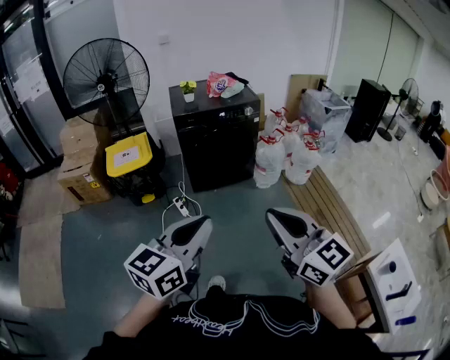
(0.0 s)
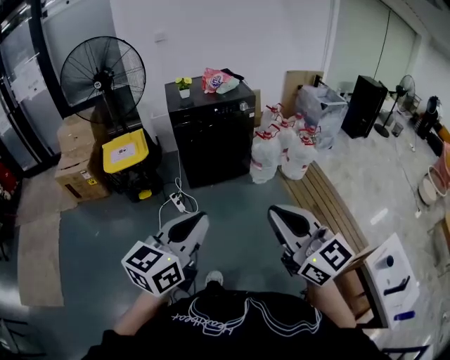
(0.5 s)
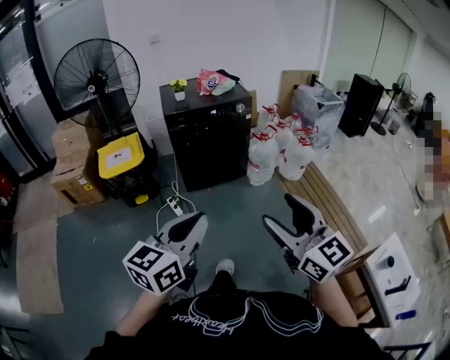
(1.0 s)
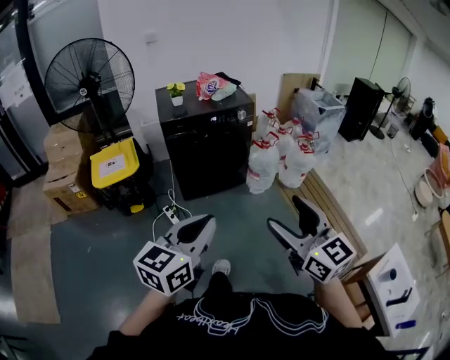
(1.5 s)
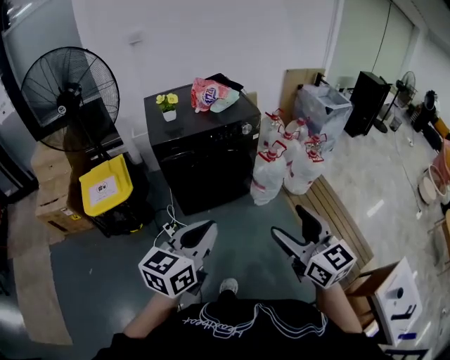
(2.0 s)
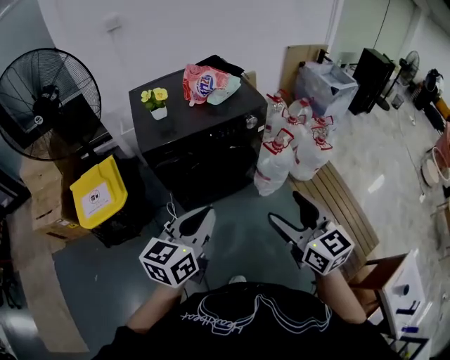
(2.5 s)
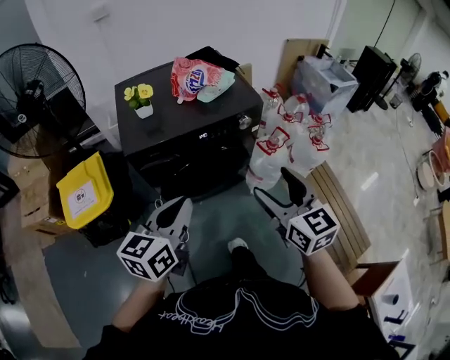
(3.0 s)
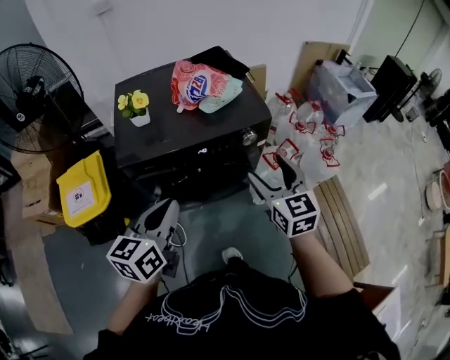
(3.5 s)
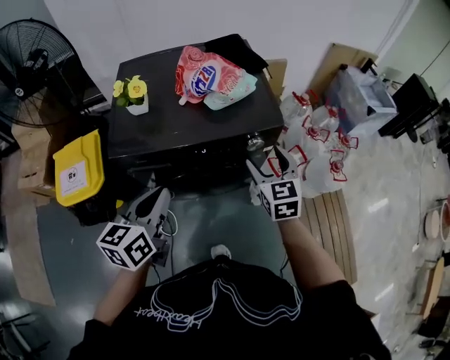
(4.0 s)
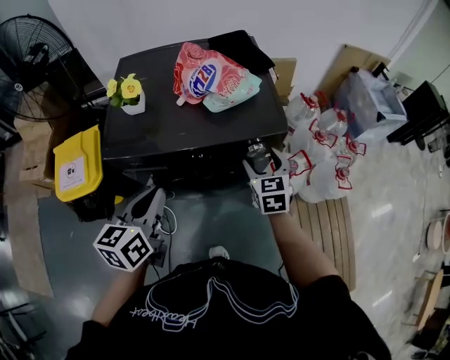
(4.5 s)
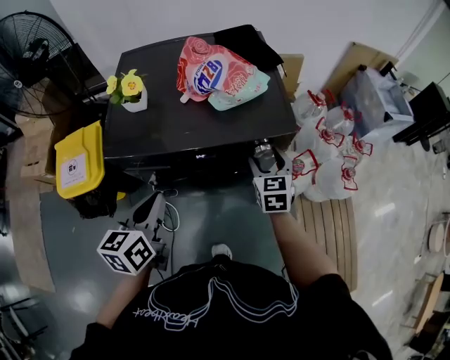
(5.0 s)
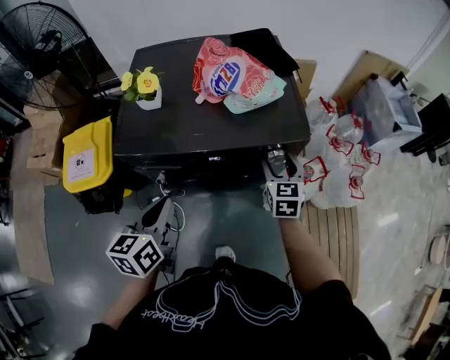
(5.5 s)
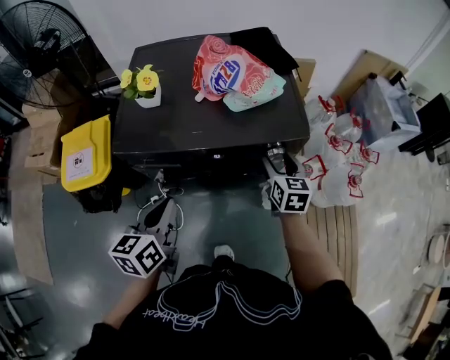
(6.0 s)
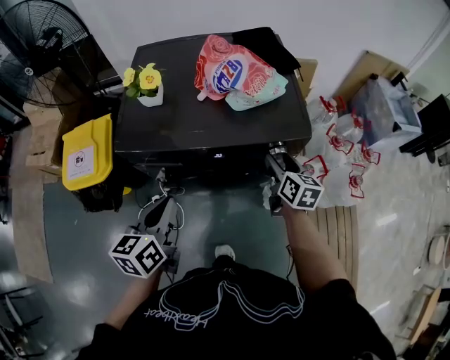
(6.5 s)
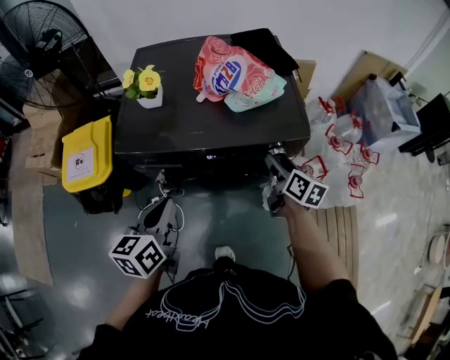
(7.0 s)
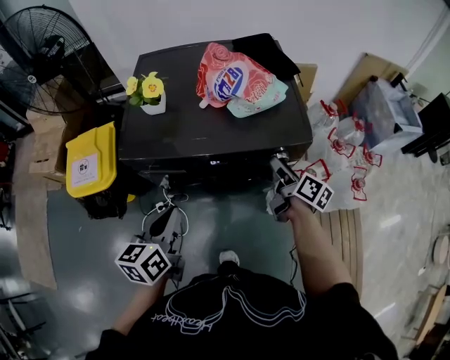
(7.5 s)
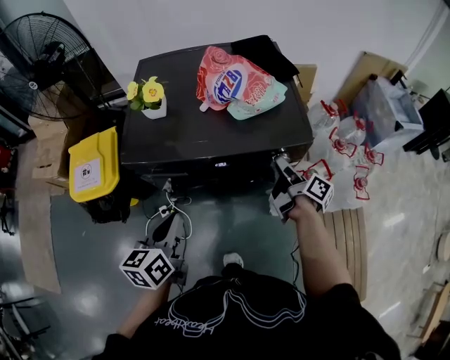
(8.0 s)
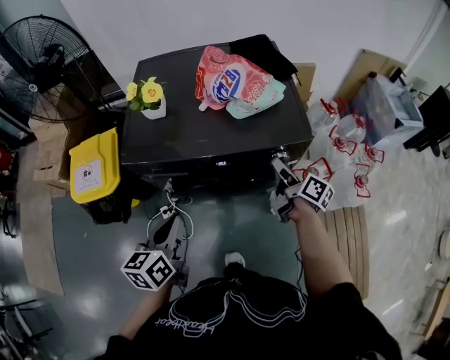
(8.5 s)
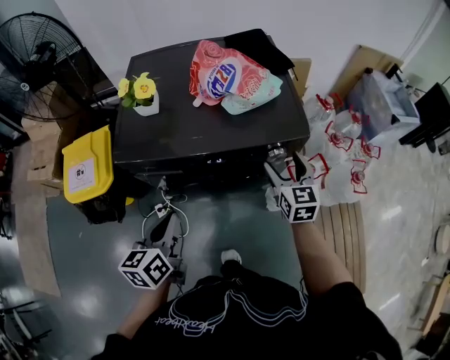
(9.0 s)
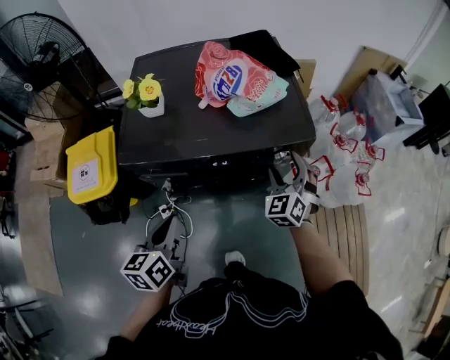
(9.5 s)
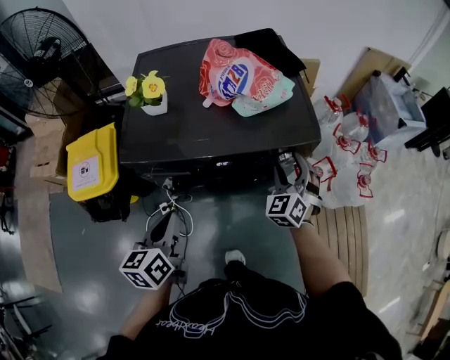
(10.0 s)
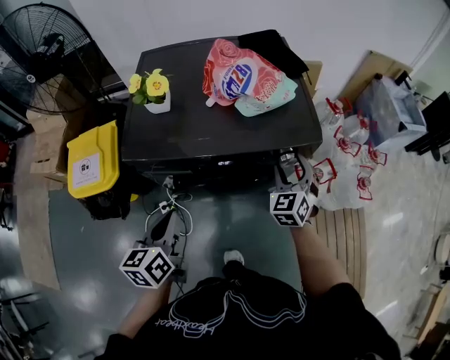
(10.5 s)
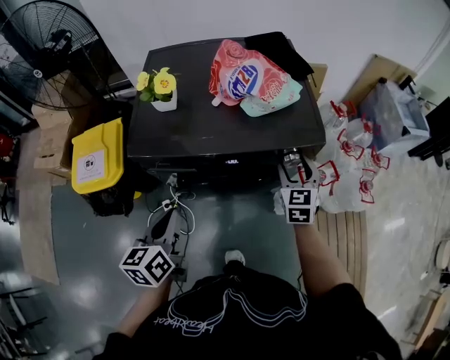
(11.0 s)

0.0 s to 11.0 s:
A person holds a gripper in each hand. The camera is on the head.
0.0 to 2.0 s: The two grippers go about 30 cm forward. The right gripper opens.
2.0 to 3.5 s: The grippers both shift forward by roughly 35 cm.
3.5 to 5.5 s: The right gripper heads forward and downward, covering roughly 25 cm; the left gripper shifts approximately 10 cm downward and forward, and turns by approximately 20 degrees.
5.5 to 7.5 s: The right gripper rotates around the line of its fingers by about 60 degrees, clockwise from behind.
7.5 to 9.0 s: The right gripper rotates around the line of its fingers by some 60 degrees, counterclockwise from behind.

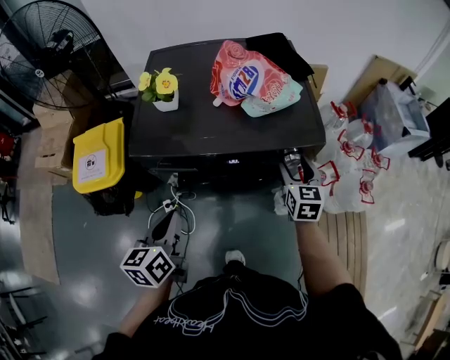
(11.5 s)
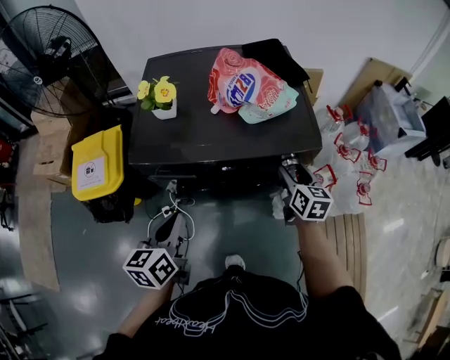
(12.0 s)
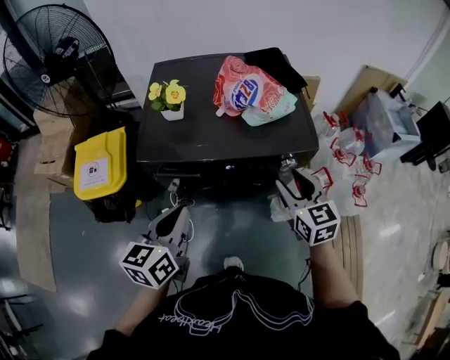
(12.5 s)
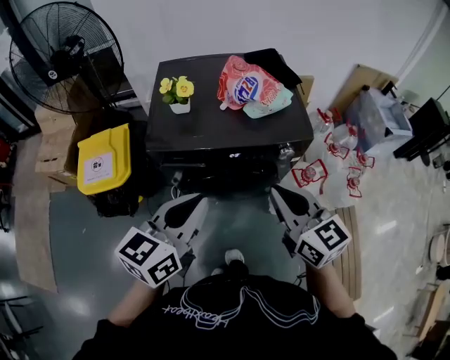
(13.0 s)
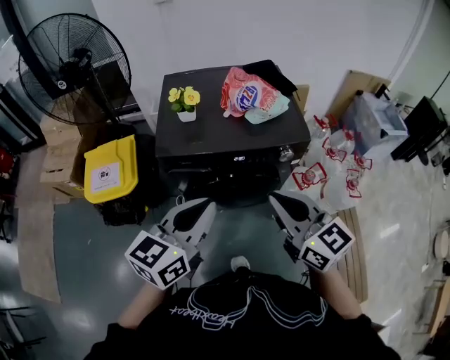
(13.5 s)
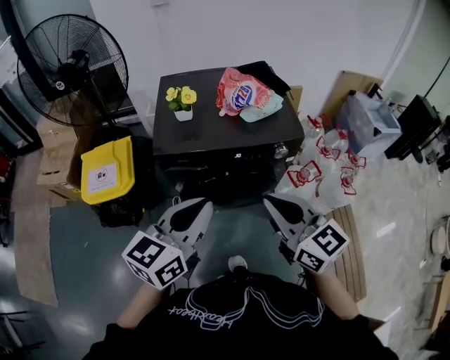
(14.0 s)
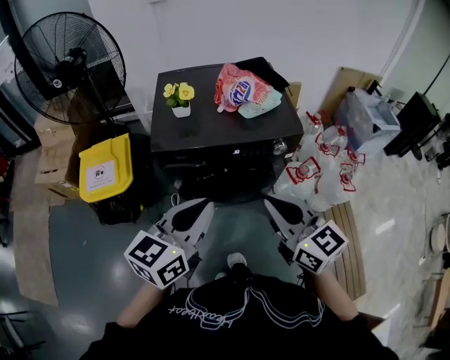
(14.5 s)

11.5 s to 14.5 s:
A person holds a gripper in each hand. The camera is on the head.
11.5 to 13.0 s: The right gripper heads upward, backward and to the left, covering some 30 cm, changes its angle by approximately 30 degrees, and closes up. The left gripper travels upward by some 15 cm, and changes its angle by roughly 30 degrees.
13.0 to 14.5 s: The two grippers go some 5 cm backward.

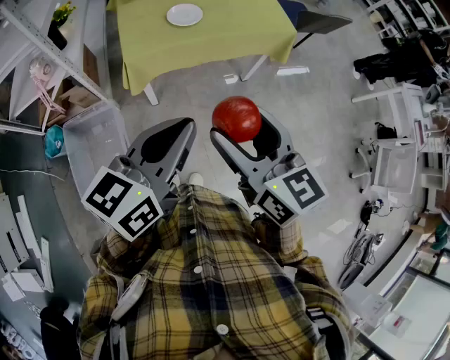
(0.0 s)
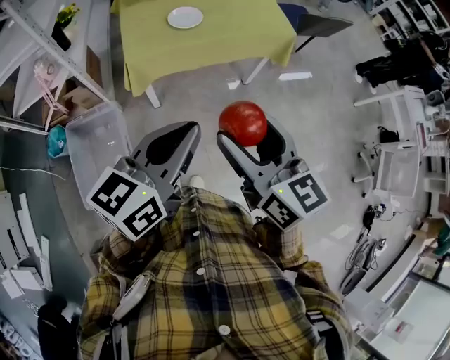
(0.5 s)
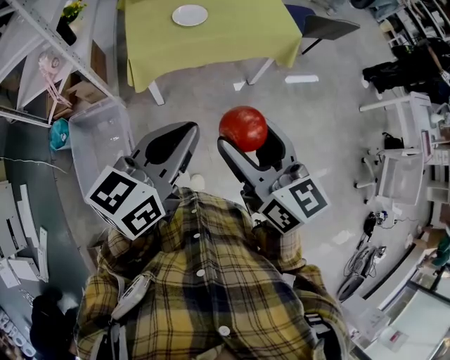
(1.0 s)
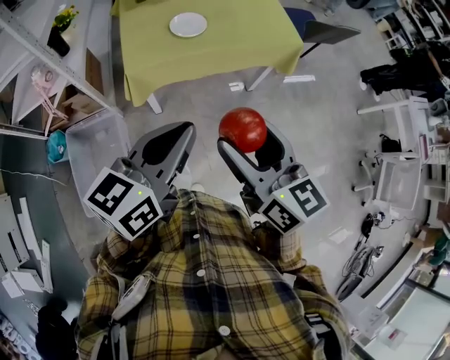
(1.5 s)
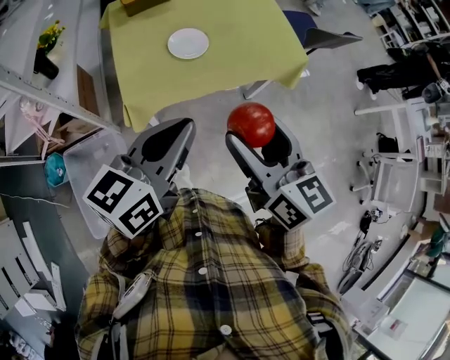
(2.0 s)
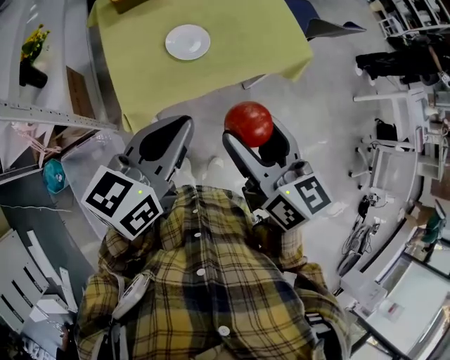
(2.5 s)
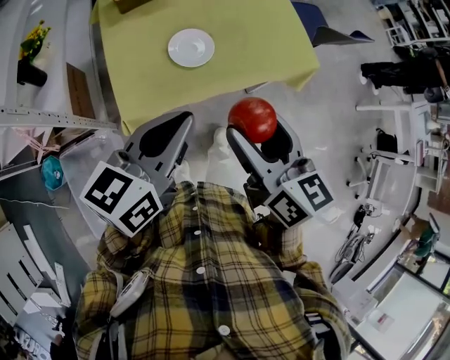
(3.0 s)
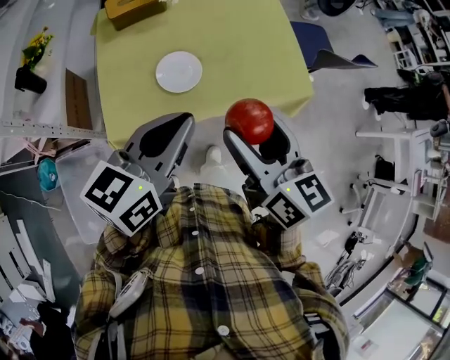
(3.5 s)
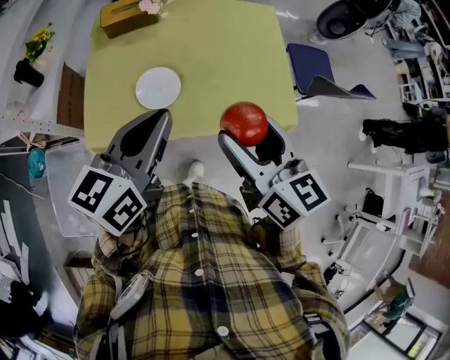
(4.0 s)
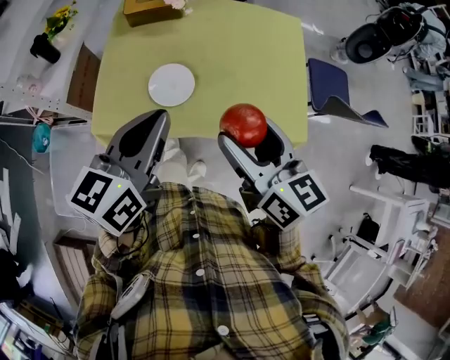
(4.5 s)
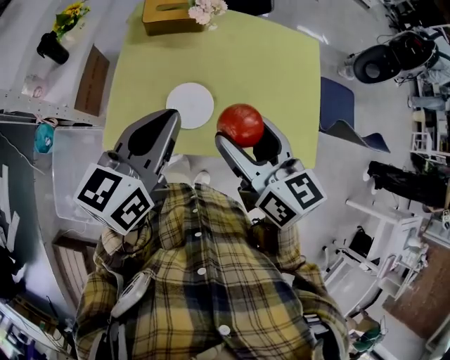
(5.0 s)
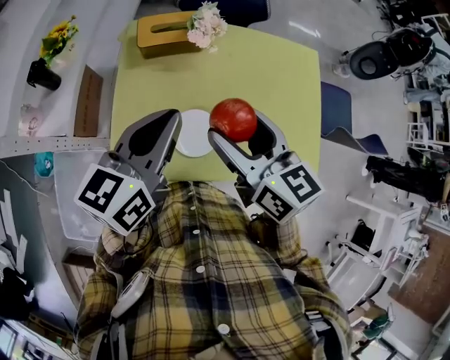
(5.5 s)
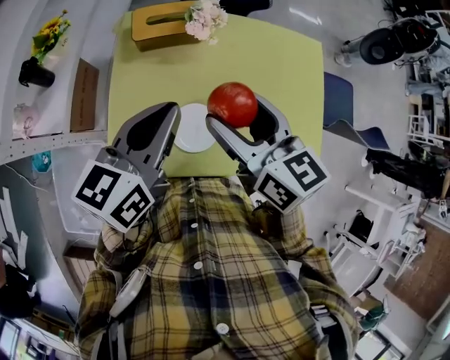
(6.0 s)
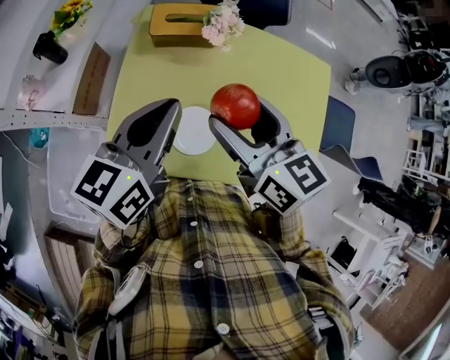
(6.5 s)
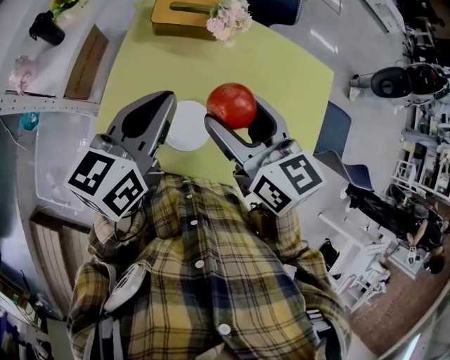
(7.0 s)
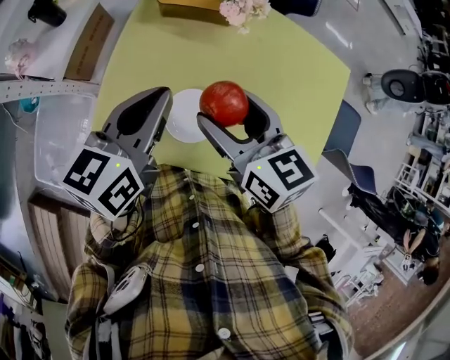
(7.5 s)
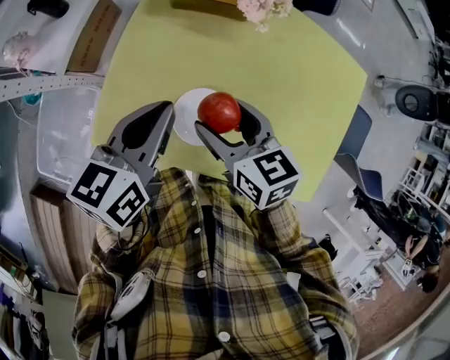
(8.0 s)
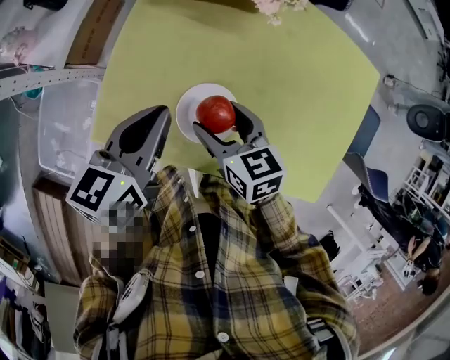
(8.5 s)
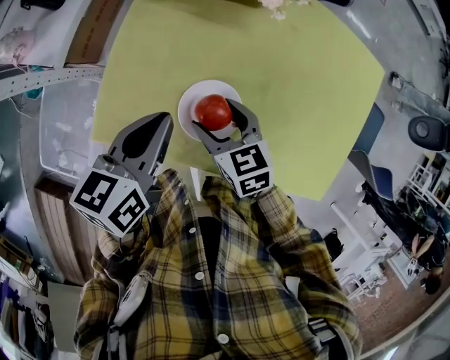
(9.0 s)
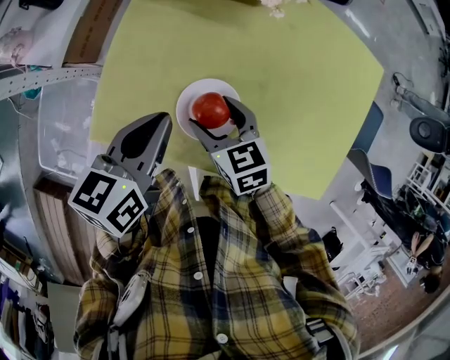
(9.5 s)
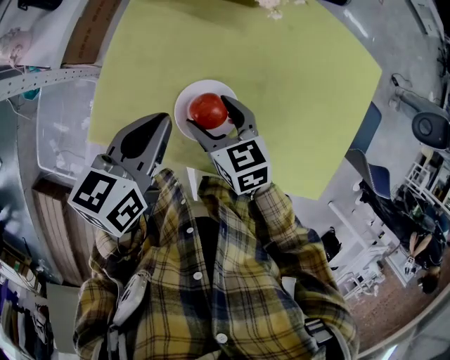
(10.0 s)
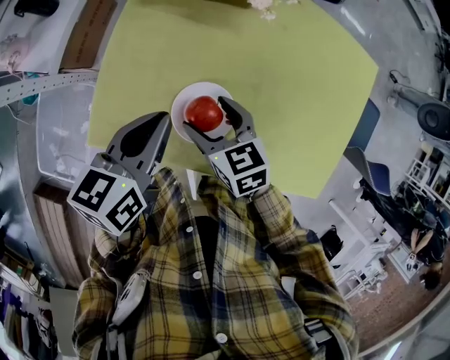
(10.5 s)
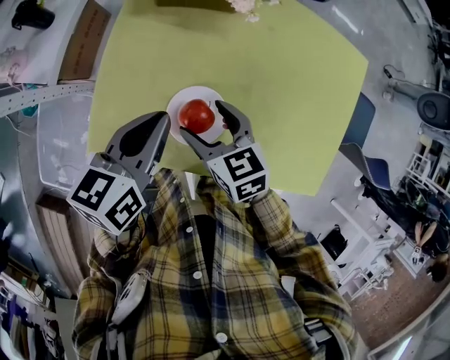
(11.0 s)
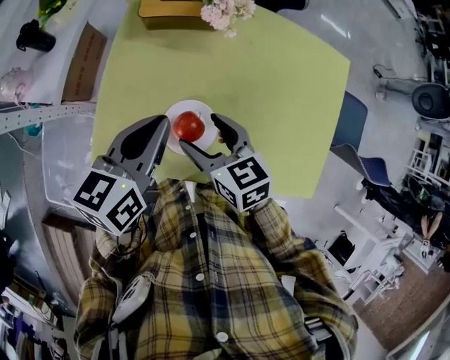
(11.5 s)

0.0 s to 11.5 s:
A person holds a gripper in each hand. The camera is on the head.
0.0 to 2.0 s: Both grippers move forward, some 20 cm.
2.0 to 4.0 s: The two grippers go roughly 25 cm forward.
4.0 to 6.0 s: The grippers both shift forward and to the left by about 25 cm.
6.0 to 7.5 s: Both grippers travel together downward, some 10 cm.
7.5 to 9.5 s: The right gripper goes some 20 cm downward. The left gripper moves downward, approximately 10 cm.
9.5 to 11.5 s: The grippers both shift upward by about 10 cm.

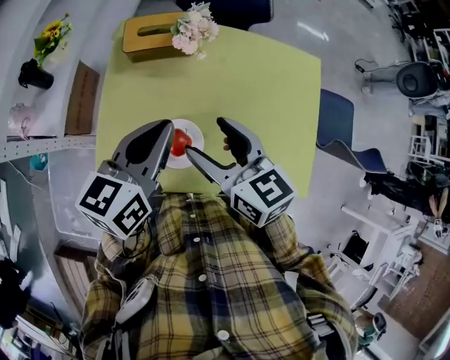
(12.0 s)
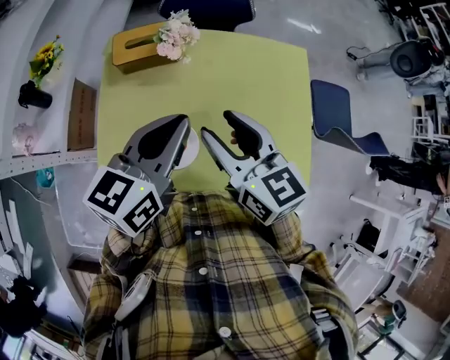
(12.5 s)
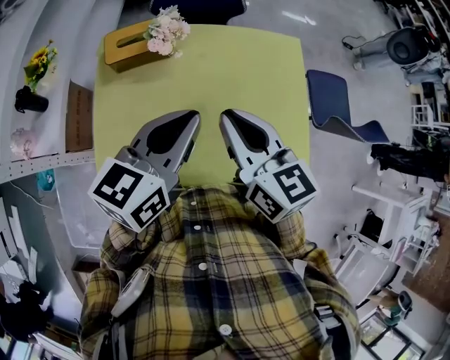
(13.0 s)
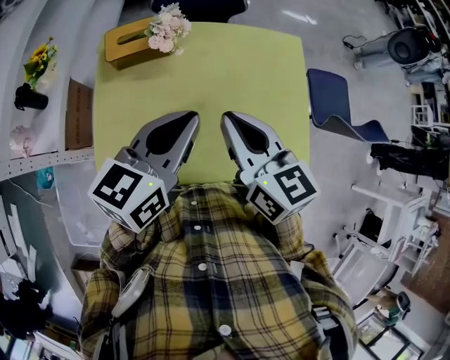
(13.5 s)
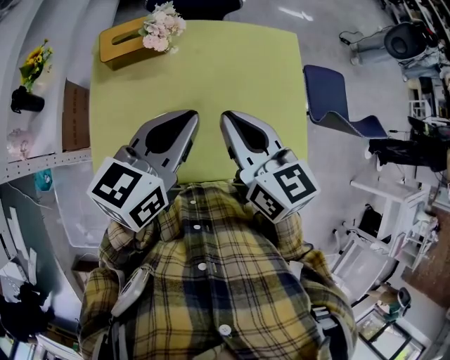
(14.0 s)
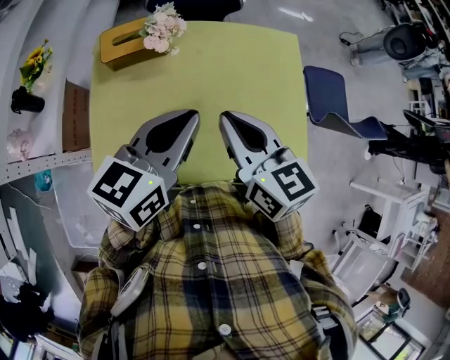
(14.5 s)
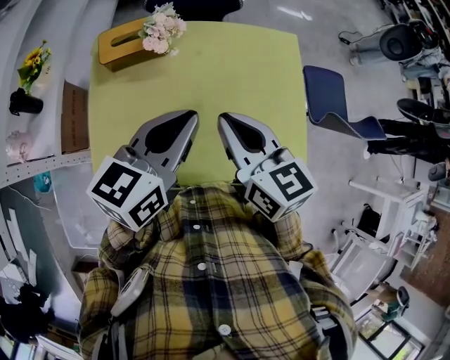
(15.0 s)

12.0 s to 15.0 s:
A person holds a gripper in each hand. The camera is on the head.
12.0 to 13.5 s: The left gripper shifts roughly 10 cm to the right. The right gripper goes some 10 cm to the right and upward, and closes its fingers.
13.5 to 15.0 s: Both grippers stay put.
